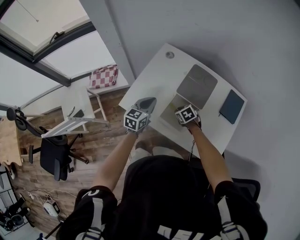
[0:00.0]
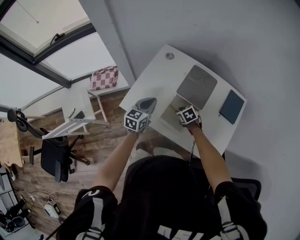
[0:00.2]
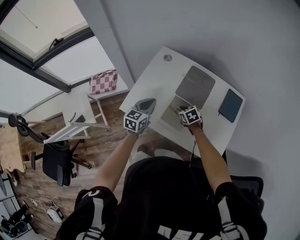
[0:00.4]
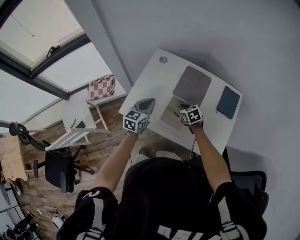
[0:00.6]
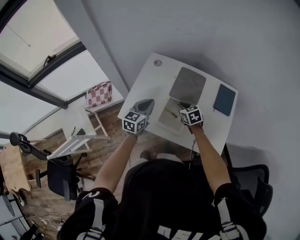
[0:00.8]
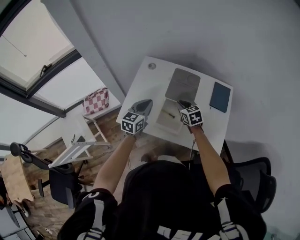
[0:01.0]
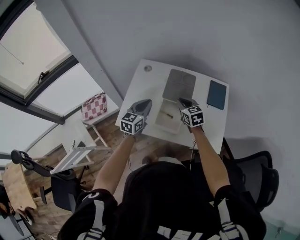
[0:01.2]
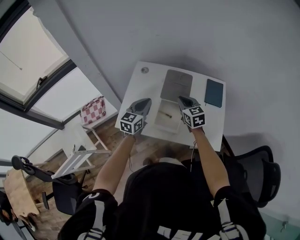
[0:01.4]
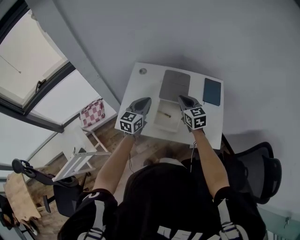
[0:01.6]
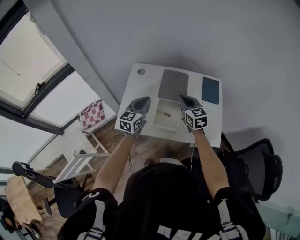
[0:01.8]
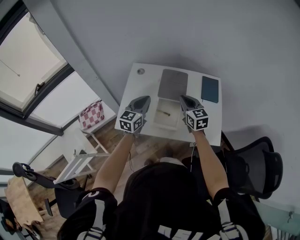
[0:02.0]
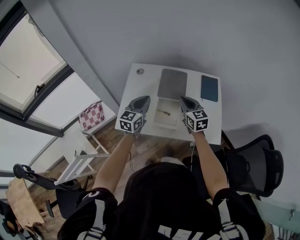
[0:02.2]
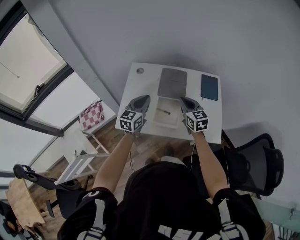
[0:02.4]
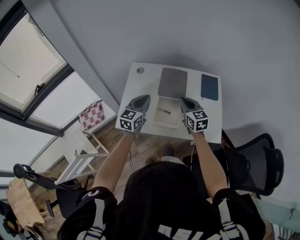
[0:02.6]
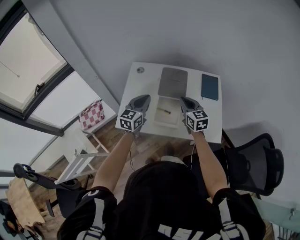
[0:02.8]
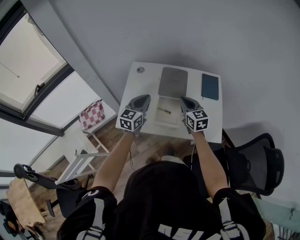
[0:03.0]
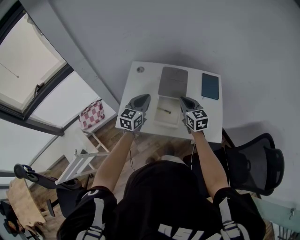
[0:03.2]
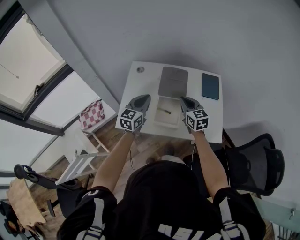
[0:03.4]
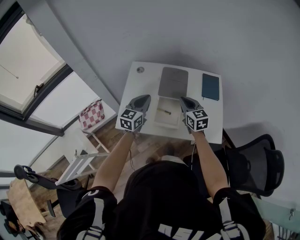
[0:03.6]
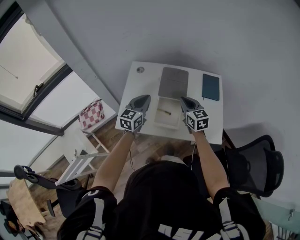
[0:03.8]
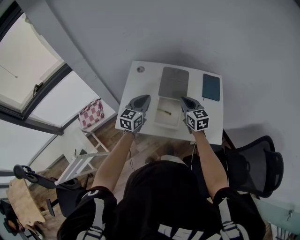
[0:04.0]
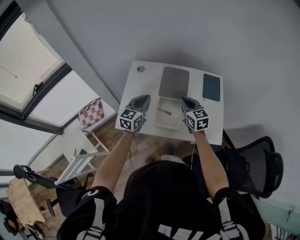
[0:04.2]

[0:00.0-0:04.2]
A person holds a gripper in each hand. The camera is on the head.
0:00.0 to 0:01.4: The left gripper moves upward, some 10 cm. Meanwhile the right gripper moves upward, some 25 cm, and angles its fingers upward, by about 40 degrees.
0:01.4 to 0:02.8: The right gripper ends up approximately 5 cm from where it was.
0:02.8 to 0:04.2: The grippers stay close to where they were, moving slightly.

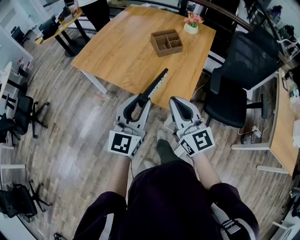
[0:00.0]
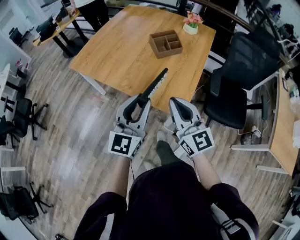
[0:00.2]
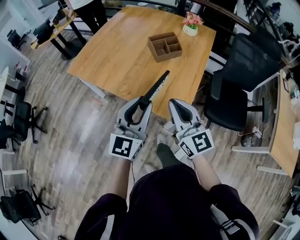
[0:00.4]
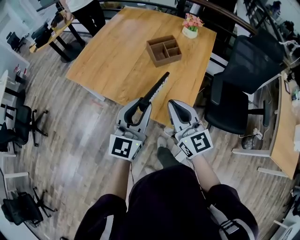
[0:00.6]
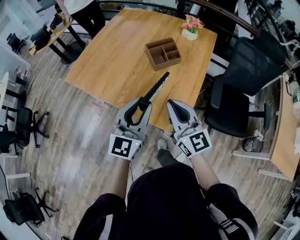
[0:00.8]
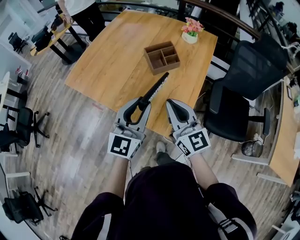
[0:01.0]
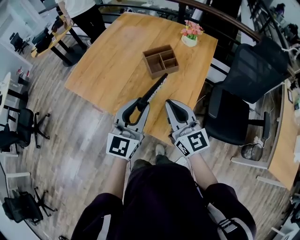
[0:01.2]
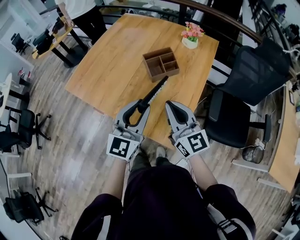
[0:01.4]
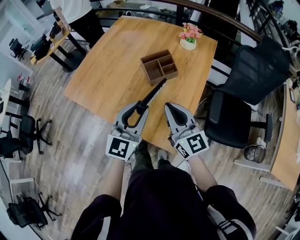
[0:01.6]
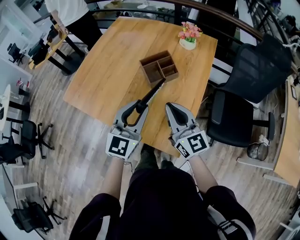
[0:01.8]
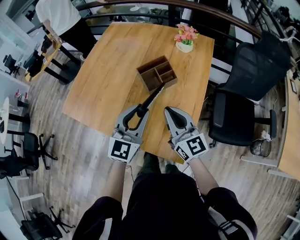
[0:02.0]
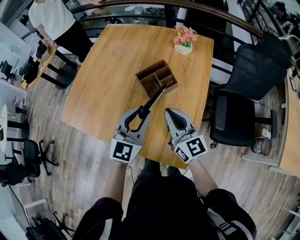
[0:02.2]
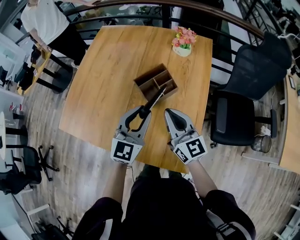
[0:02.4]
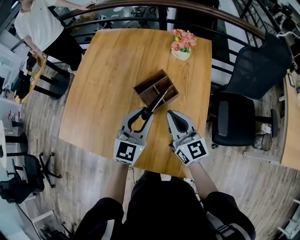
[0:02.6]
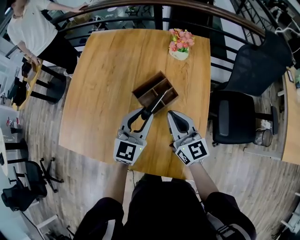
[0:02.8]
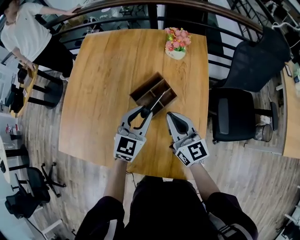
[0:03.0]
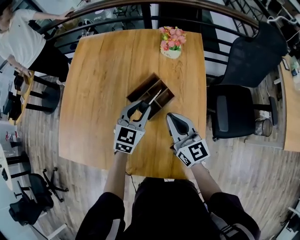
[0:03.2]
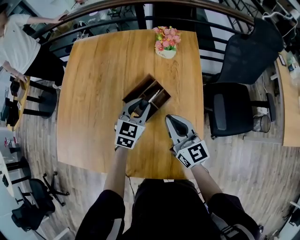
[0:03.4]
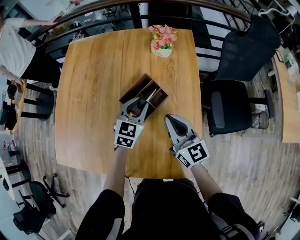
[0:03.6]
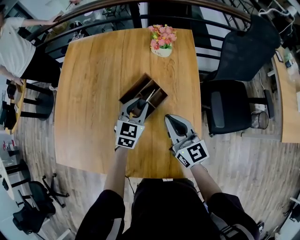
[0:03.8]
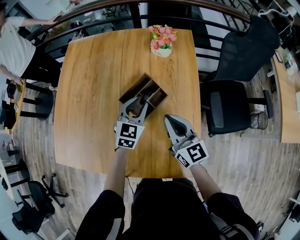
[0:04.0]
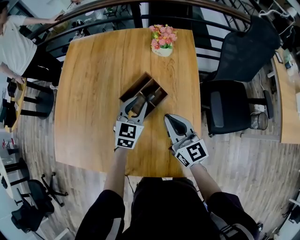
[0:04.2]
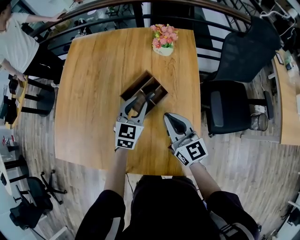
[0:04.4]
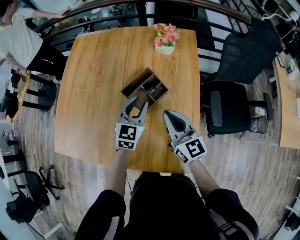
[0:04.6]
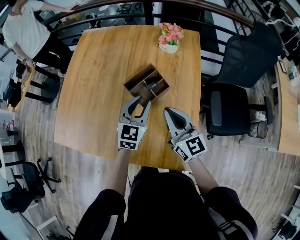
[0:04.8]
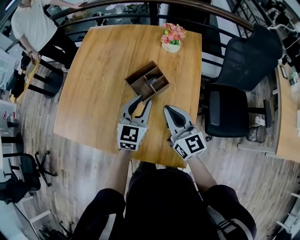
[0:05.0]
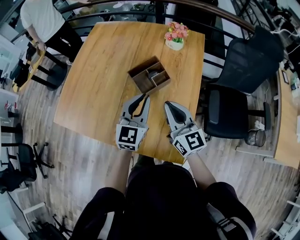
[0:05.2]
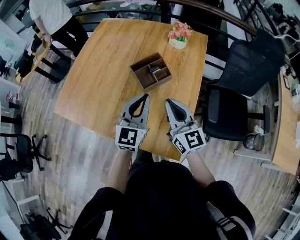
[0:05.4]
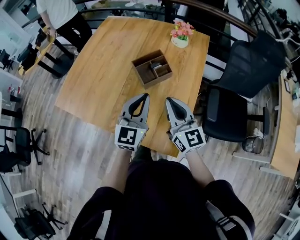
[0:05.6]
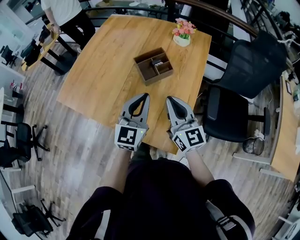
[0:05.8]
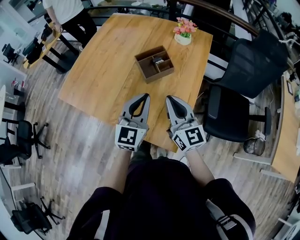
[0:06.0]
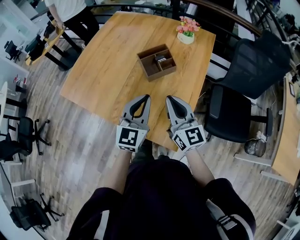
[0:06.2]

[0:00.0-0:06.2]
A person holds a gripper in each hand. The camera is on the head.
0:00.0 to 0:01.6: The two grippers go approximately 25 cm forward.
0:01.6 to 0:03.2: The left gripper moves forward and downward, roughly 35 cm, and turns by roughly 30 degrees. Meanwhile the right gripper heads forward, covering some 25 cm, and rotates roughly 20 degrees.
0:03.2 to 0:04.6: The grippers stay close to where they were, moving slightly.
0:04.6 to 0:06.2: Both grippers move backward, approximately 20 cm. The left gripper rotates approximately 20 degrees, and closes.

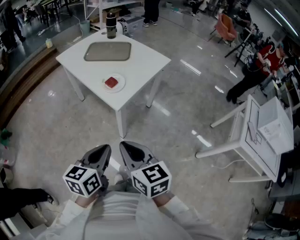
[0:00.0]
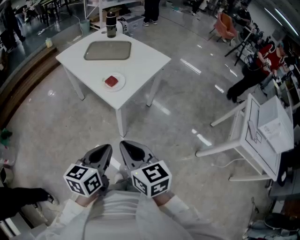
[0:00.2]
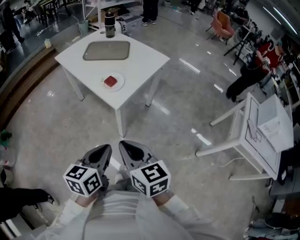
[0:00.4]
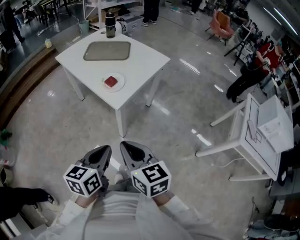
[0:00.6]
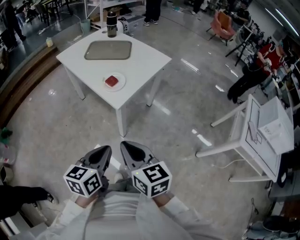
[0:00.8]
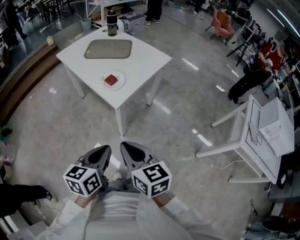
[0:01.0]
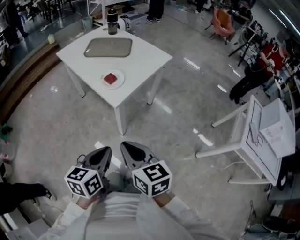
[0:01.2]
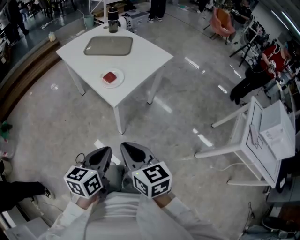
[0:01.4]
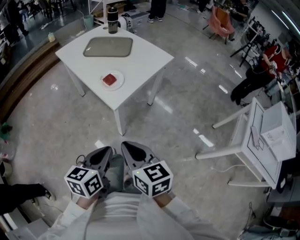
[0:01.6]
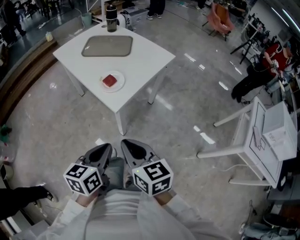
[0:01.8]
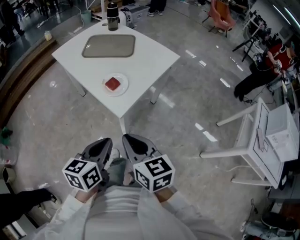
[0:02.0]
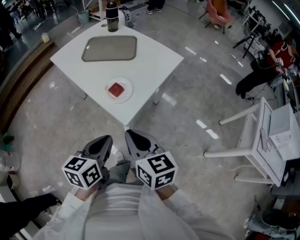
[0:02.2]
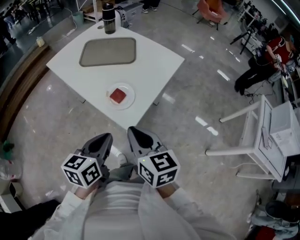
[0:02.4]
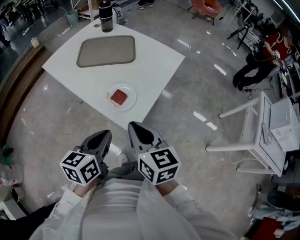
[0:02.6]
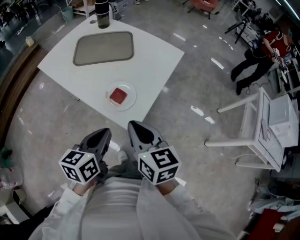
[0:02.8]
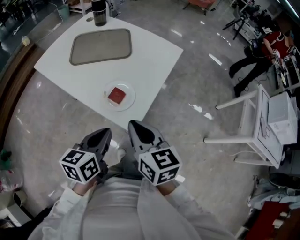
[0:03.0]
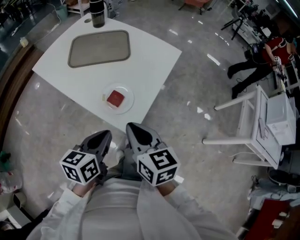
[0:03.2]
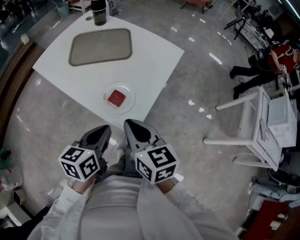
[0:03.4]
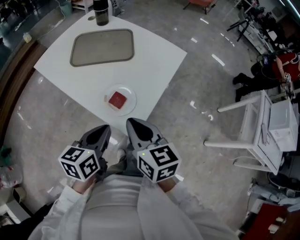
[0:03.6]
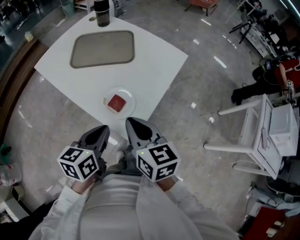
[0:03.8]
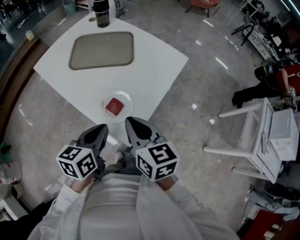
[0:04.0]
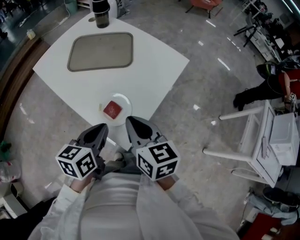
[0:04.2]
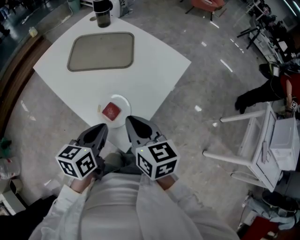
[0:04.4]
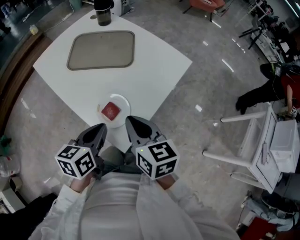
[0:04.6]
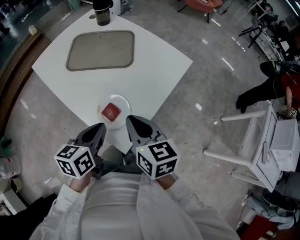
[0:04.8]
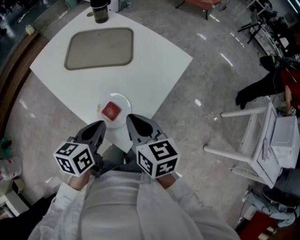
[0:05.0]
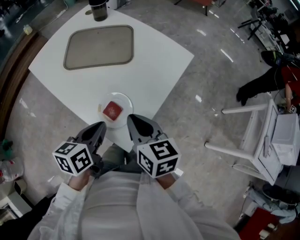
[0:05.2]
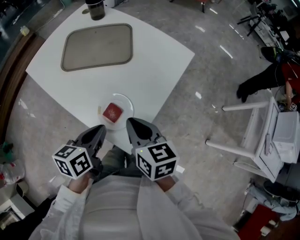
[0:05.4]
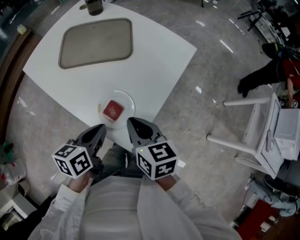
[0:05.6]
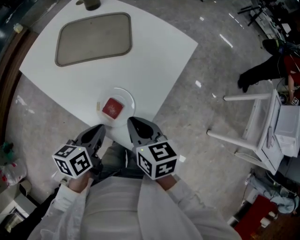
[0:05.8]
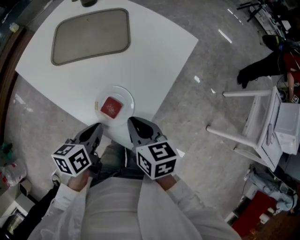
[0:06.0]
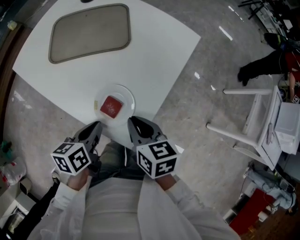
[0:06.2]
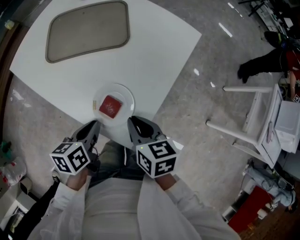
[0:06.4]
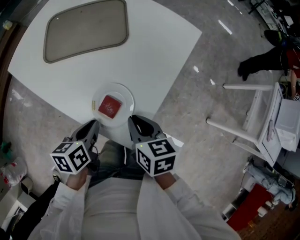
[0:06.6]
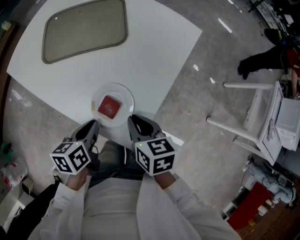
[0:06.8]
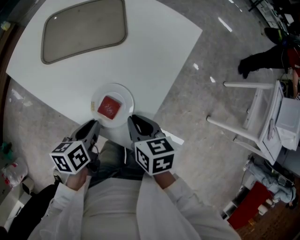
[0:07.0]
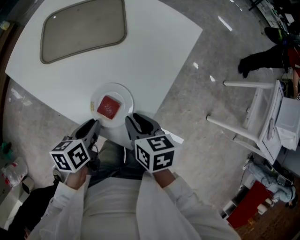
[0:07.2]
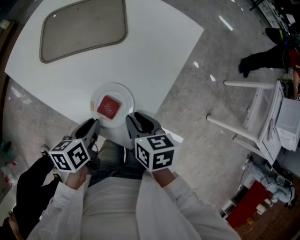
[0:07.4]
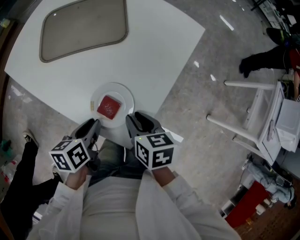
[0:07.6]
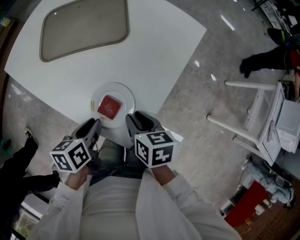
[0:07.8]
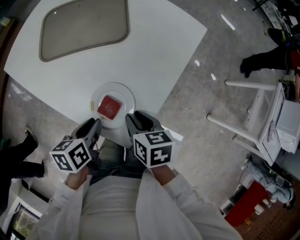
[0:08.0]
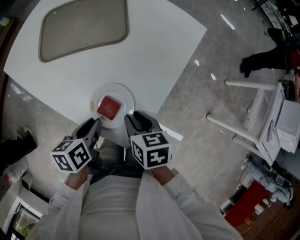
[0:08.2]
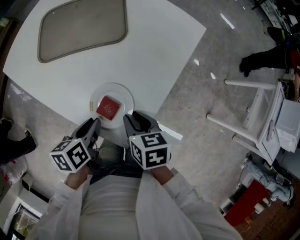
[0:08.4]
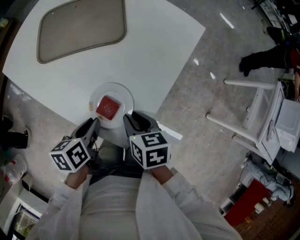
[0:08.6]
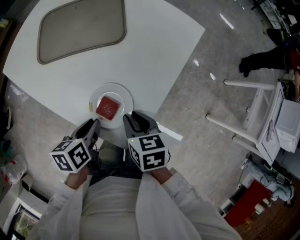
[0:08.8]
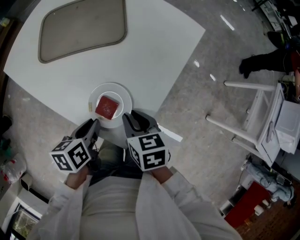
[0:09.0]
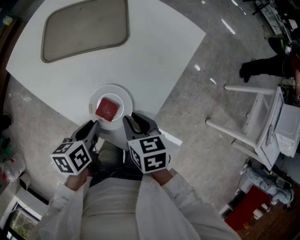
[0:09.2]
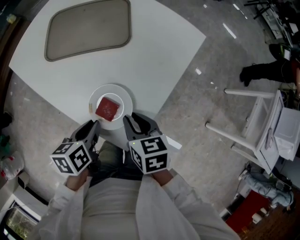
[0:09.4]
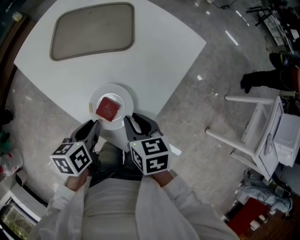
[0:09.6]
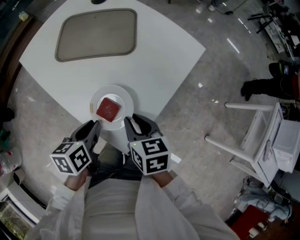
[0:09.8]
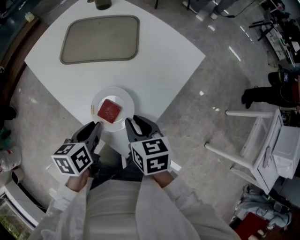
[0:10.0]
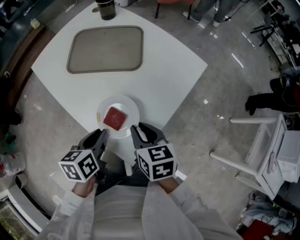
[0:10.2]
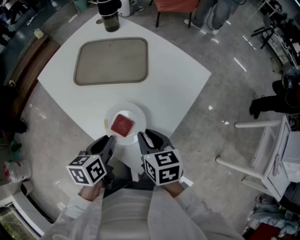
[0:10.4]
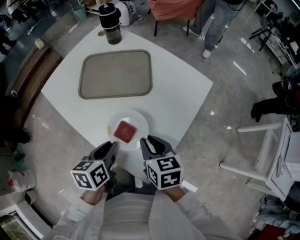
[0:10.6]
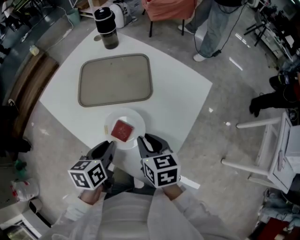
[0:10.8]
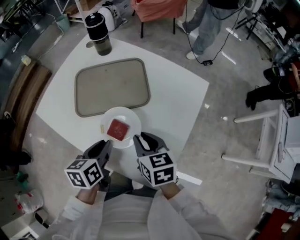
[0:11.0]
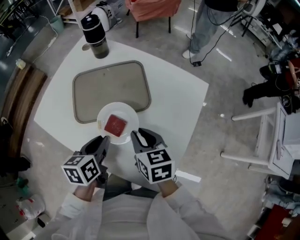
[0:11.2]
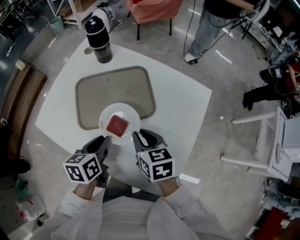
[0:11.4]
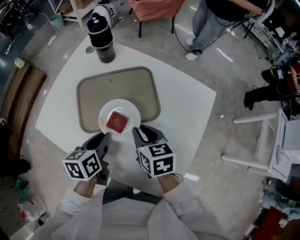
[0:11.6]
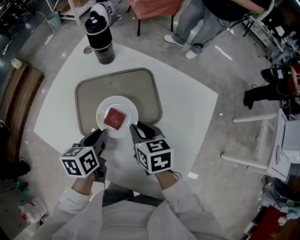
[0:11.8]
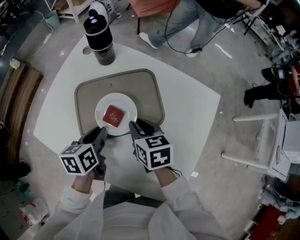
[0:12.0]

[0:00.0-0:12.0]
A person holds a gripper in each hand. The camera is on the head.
0:00.0 to 0:01.6: The grippers move only a little.
0:01.6 to 0:03.0: The left gripper travels forward and to the left by about 30 cm, while the right gripper moves forward, roughly 25 cm.
0:03.0 to 0:04.4: Both grippers move forward, roughly 10 cm.
0:04.4 to 0:06.0: Both grippers move downward, some 10 cm.
0:06.0 to 0:07.6: The right gripper is displaced downward by roughly 5 cm. The left gripper shifts by some 5 cm.
0:07.6 to 0:09.0: The grippers stay close to where they were, moving slightly.
0:09.0 to 0:10.4: The two grippers go approximately 5 cm upward.
0:10.4 to 0:12.0: The grippers both shift forward and to the left by about 30 cm.

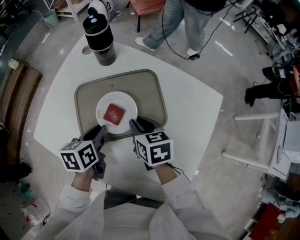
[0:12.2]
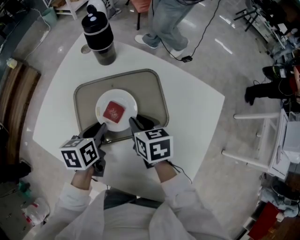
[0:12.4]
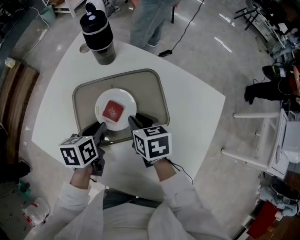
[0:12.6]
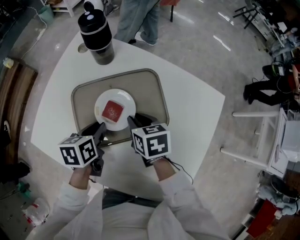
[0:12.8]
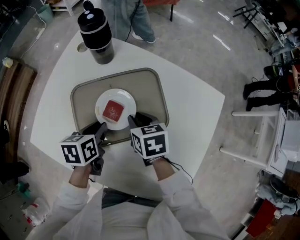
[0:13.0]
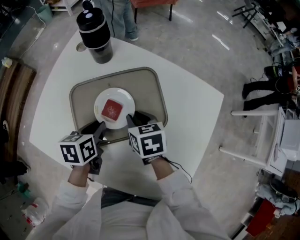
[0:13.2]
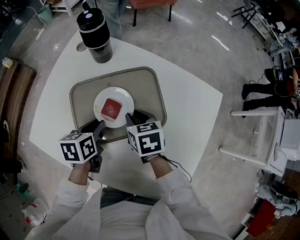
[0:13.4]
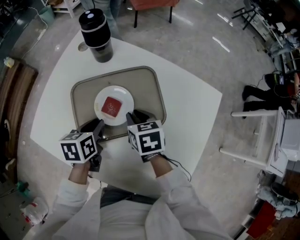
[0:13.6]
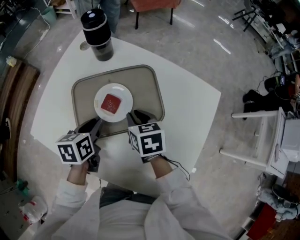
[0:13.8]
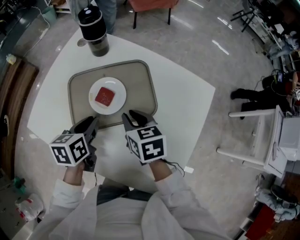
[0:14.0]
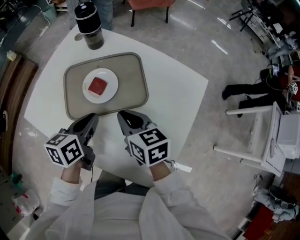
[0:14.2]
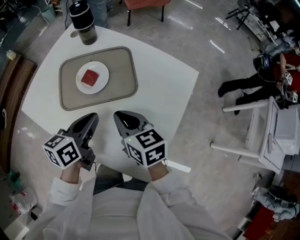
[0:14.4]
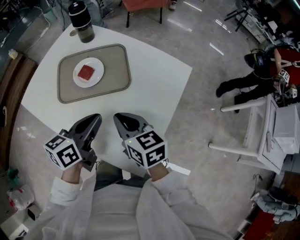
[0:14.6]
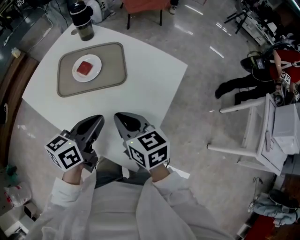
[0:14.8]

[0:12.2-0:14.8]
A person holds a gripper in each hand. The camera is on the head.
0:12.2 to 0:13.4: The grippers stay close to where they were, moving slightly.
0:13.4 to 0:14.8: The left gripper is displaced backward, to the right and upward by some 30 cm, and tilts its fingers approximately 30 degrees upward; the right gripper travels backward, upward and to the right by about 30 cm, and rotates approximately 30 degrees.
